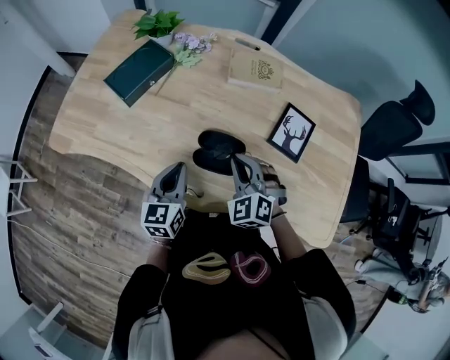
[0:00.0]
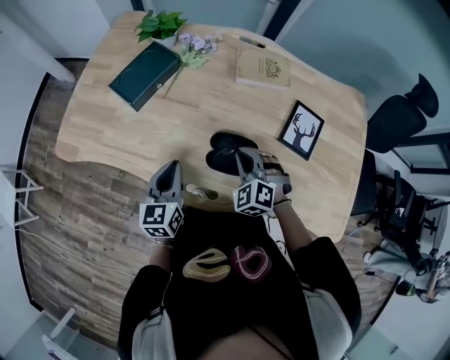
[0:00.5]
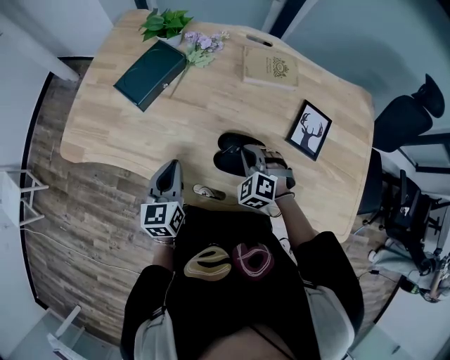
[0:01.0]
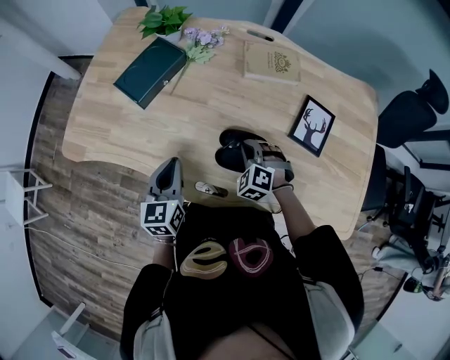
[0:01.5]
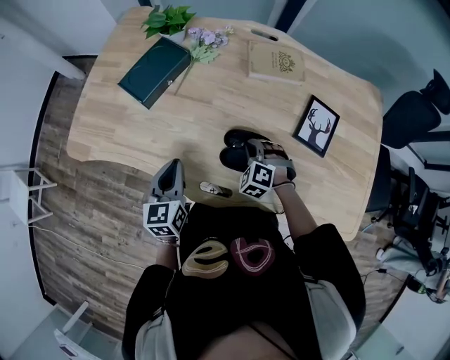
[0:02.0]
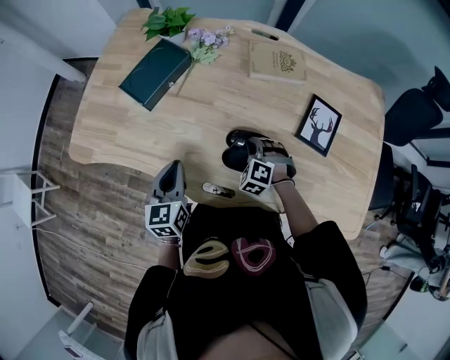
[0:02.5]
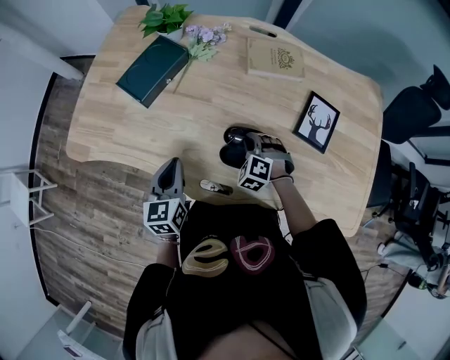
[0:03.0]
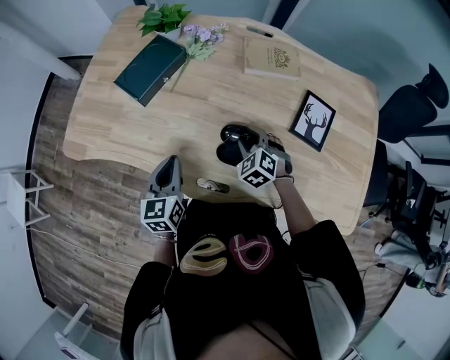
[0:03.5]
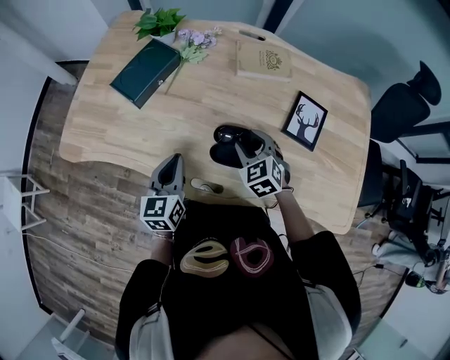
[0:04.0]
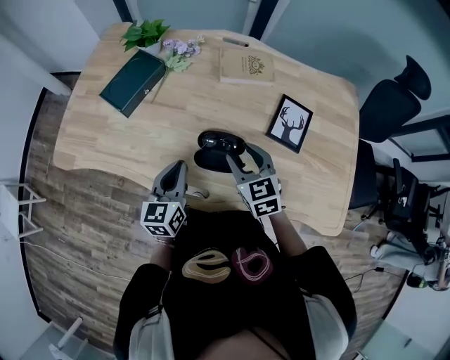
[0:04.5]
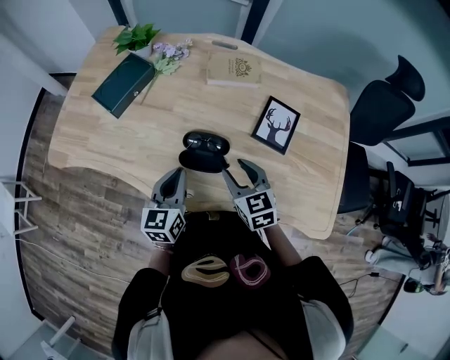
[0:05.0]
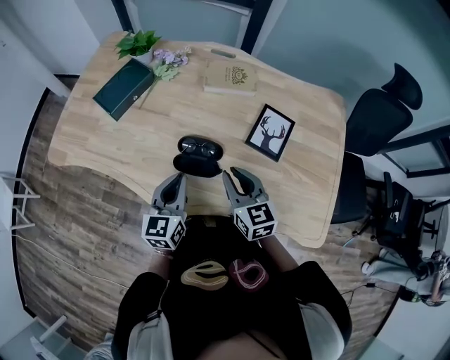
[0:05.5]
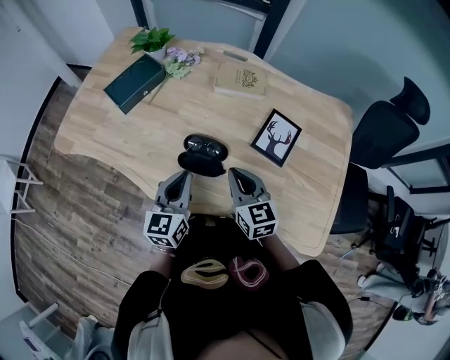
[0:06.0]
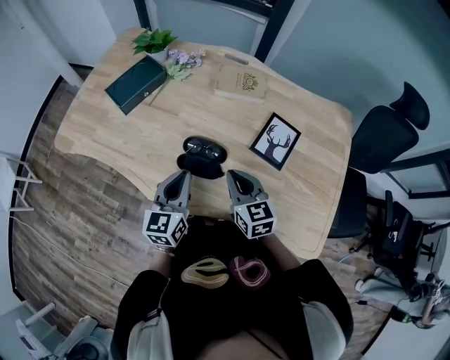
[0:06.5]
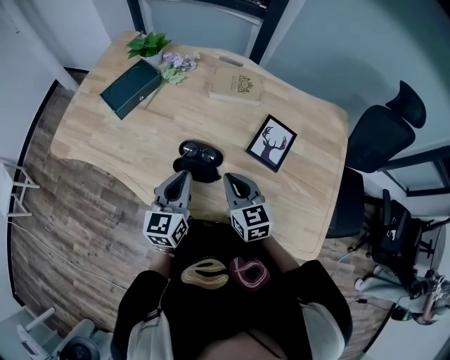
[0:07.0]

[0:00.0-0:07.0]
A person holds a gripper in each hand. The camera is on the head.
0.0 to 2.0 s: The right gripper is displaced downward and forward by approximately 15 cm, and turns by about 20 degrees. The left gripper travels to the left by some 10 cm.
2.0 to 3.5 s: The right gripper opens.
3.5 to 5.0 s: The left gripper moves to the right, roughly 15 cm; the right gripper heads backward, upward and to the right, covering roughly 15 cm, and changes its angle by about 40 degrees.
5.0 to 7.0 s: The right gripper closes, while the left gripper ends up approximately 5 cm from where it was.

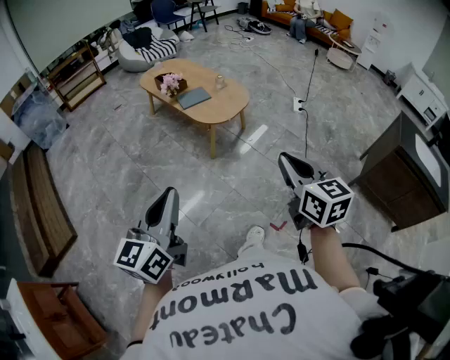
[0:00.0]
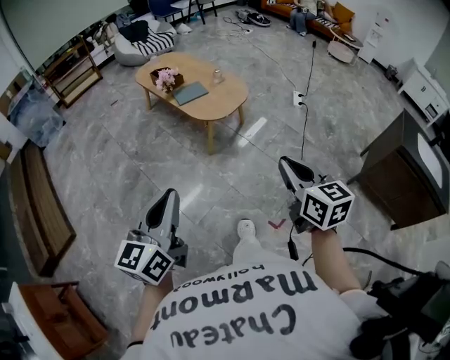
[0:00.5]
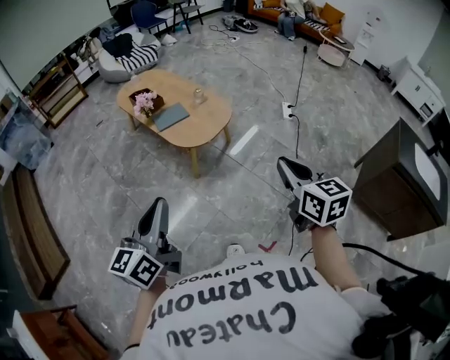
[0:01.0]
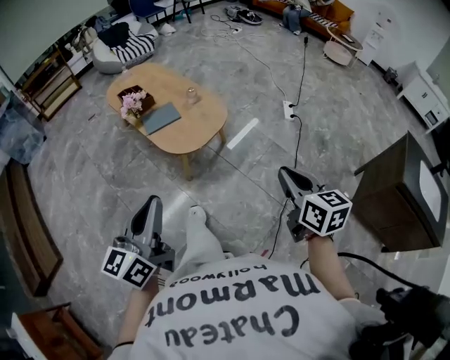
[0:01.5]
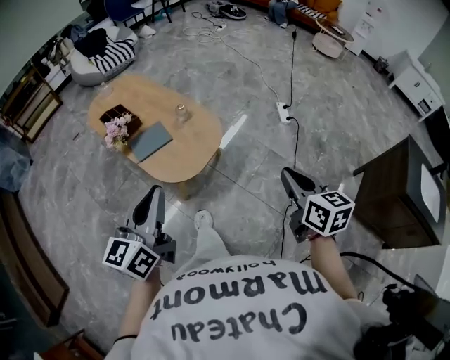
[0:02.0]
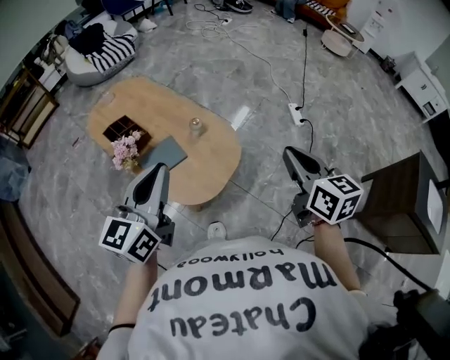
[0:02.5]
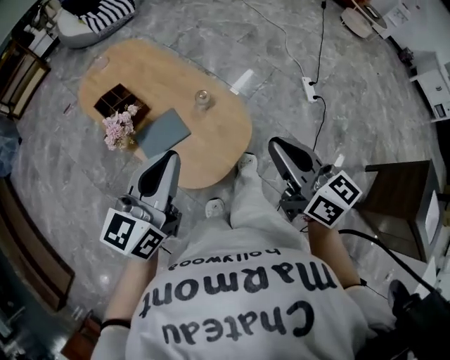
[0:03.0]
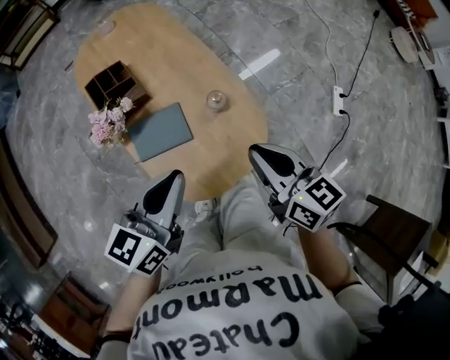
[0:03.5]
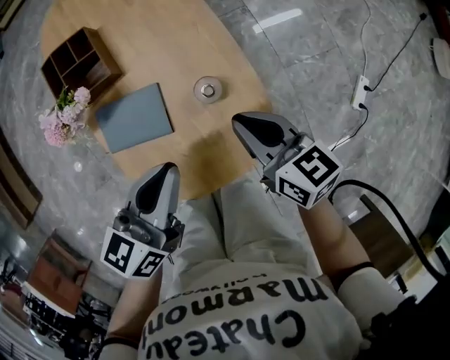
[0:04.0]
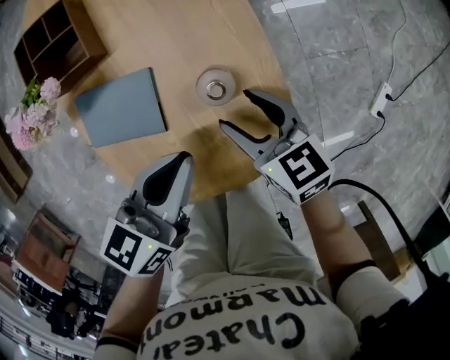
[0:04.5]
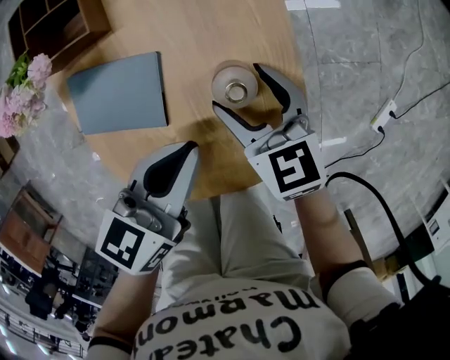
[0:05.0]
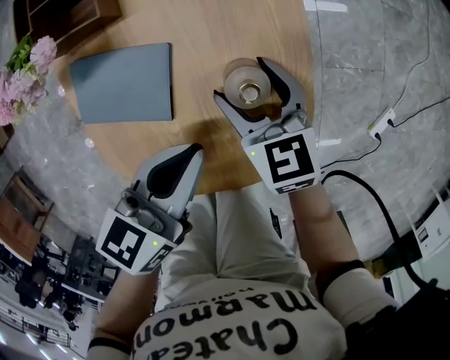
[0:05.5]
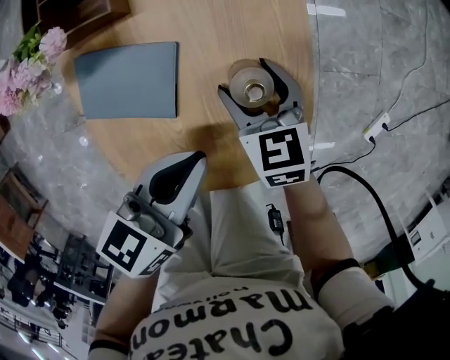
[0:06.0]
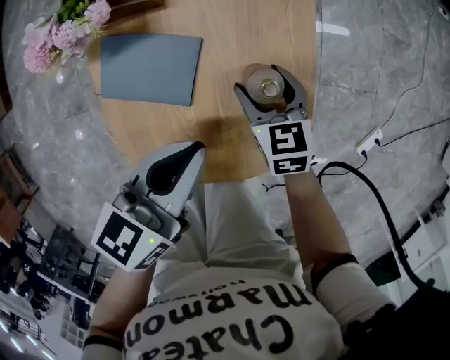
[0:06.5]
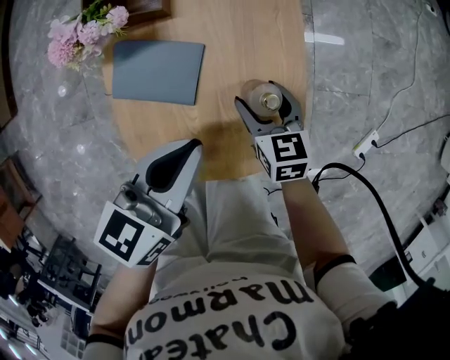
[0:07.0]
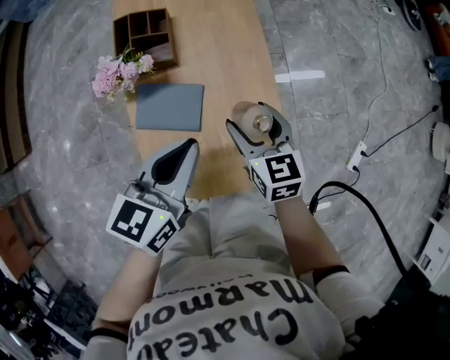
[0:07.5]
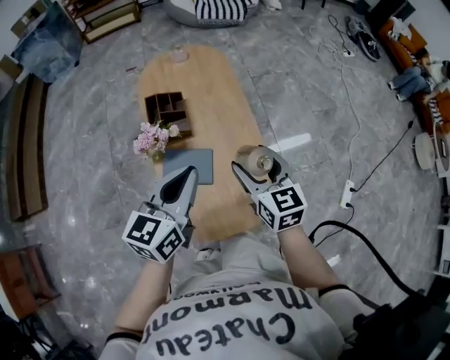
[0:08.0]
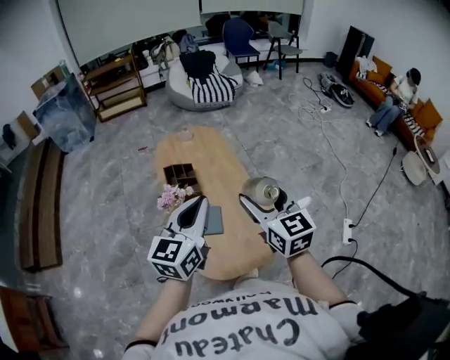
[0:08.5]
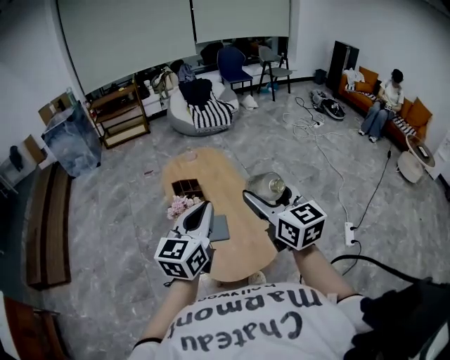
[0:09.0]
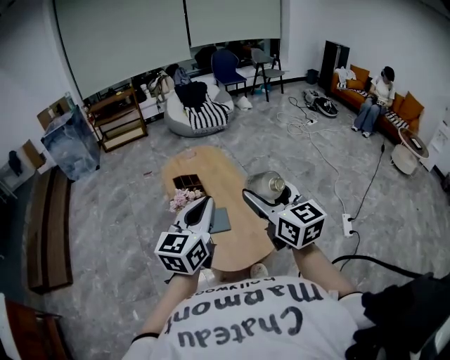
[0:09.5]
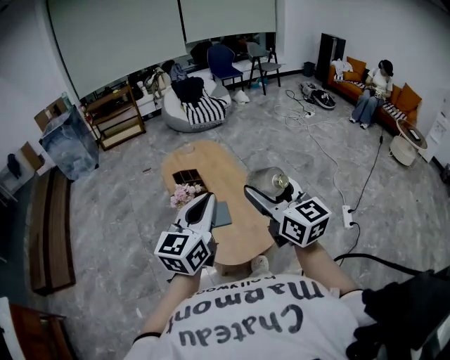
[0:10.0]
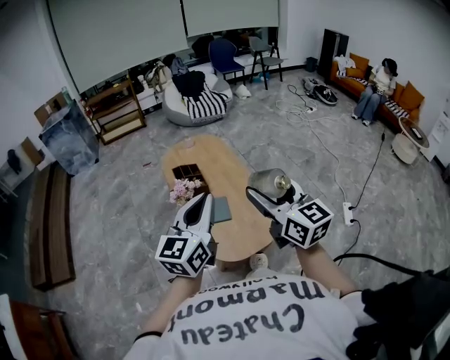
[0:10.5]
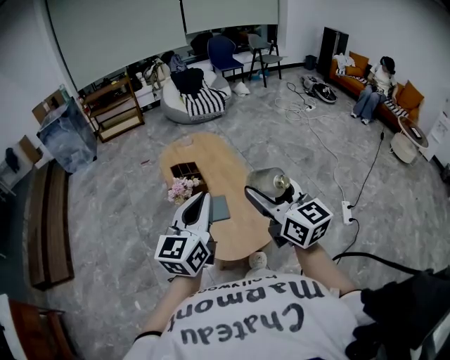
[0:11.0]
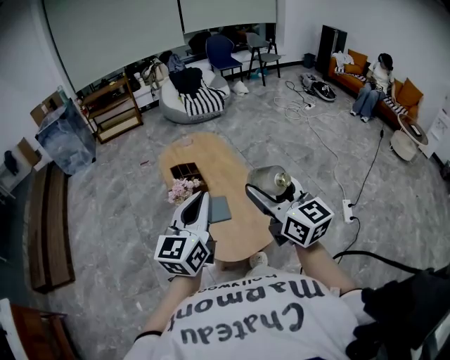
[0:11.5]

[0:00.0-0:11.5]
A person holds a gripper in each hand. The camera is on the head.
0.0 to 2.0 s: The two grippers travel together, forward, some 50 cm.
2.0 to 4.0 s: The pair of grippers is taken approximately 50 cm. The right gripper turns by approximately 50 degrees. The left gripper rotates roughly 30 degrees.
4.0 to 6.0 s: The two grippers go approximately 15 cm downward. The right gripper turns by approximately 30 degrees, and opens up.
6.0 to 7.5 s: The two grippers go approximately 20 cm upward.
7.5 to 9.5 s: The two grippers go some 40 cm upward and backward. The left gripper turns by approximately 30 degrees; the right gripper tips its fingers upward by about 30 degrees.
9.5 to 11.5 s: There are only small adjustments of the grippers.

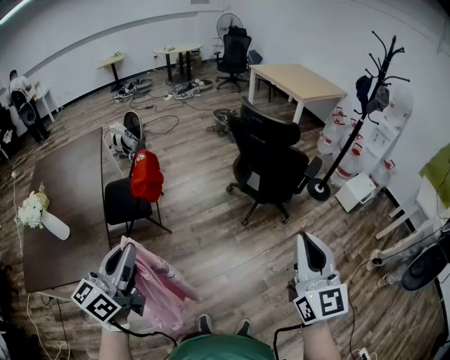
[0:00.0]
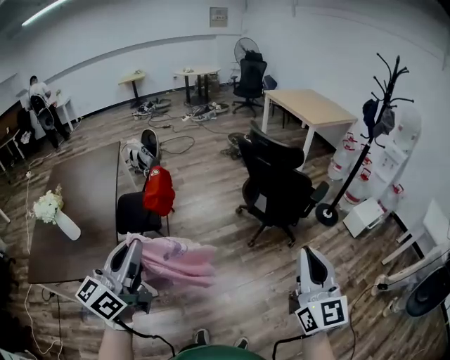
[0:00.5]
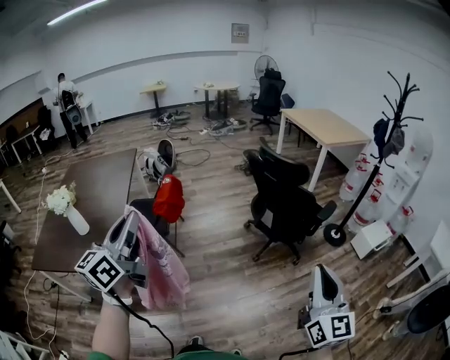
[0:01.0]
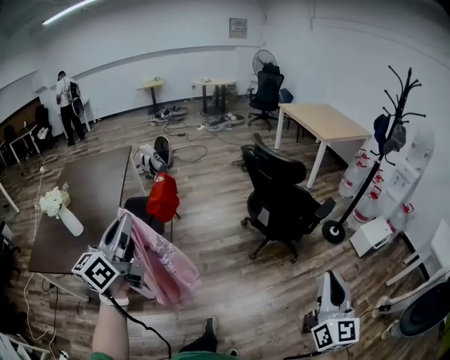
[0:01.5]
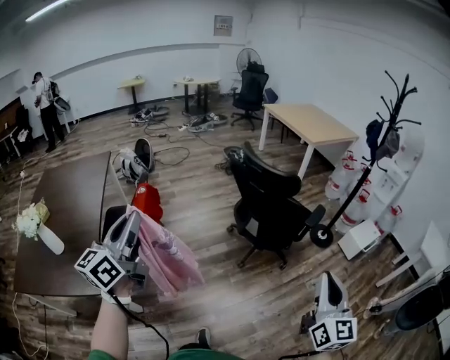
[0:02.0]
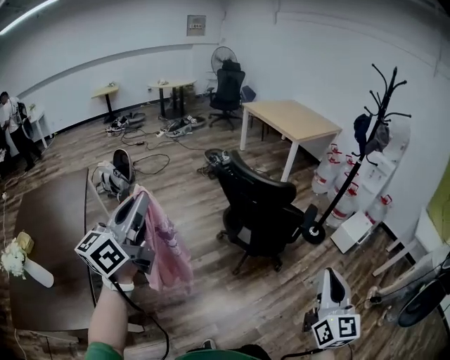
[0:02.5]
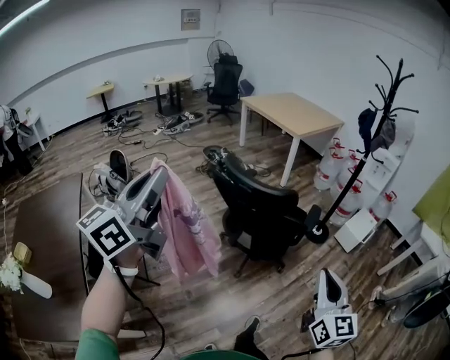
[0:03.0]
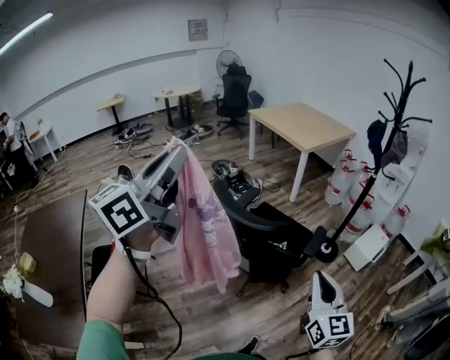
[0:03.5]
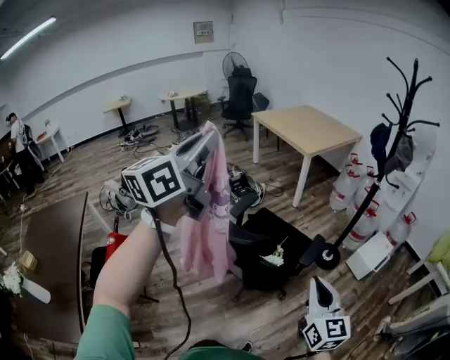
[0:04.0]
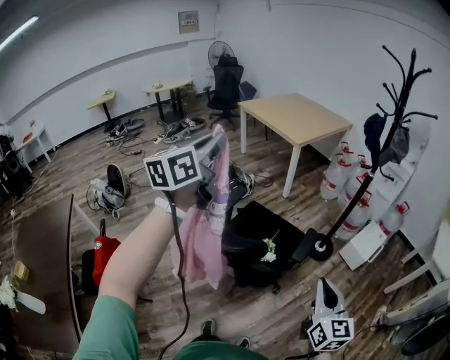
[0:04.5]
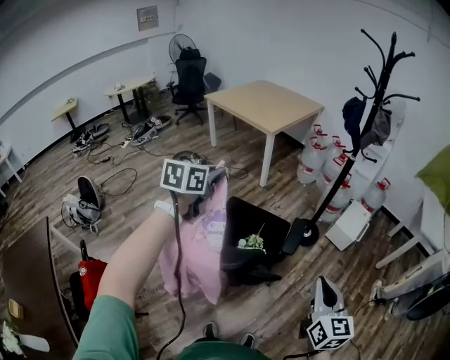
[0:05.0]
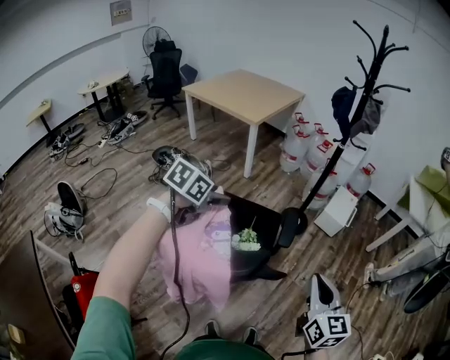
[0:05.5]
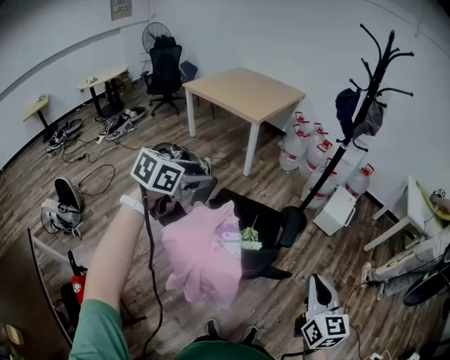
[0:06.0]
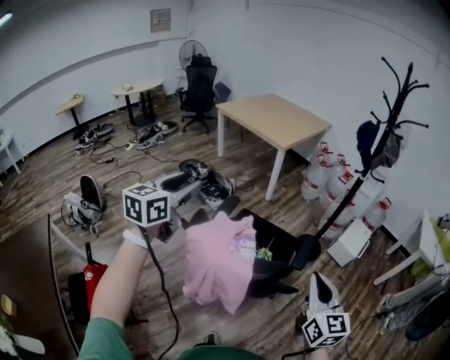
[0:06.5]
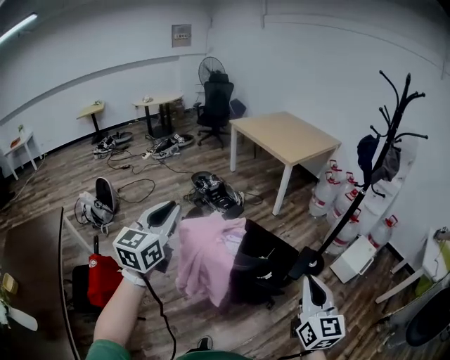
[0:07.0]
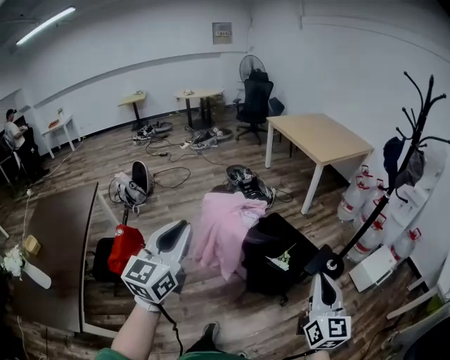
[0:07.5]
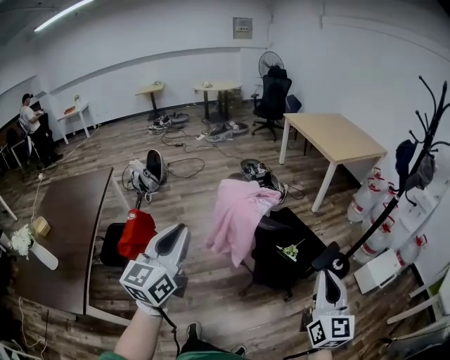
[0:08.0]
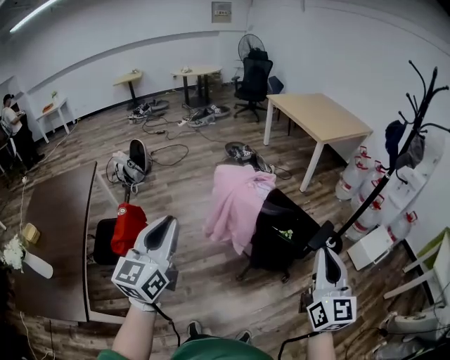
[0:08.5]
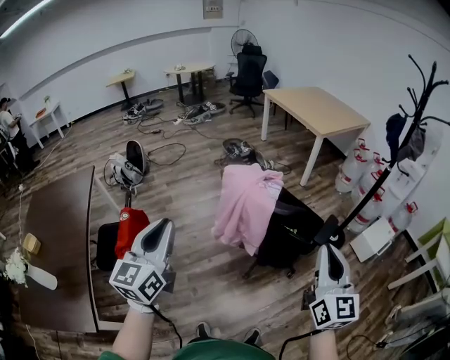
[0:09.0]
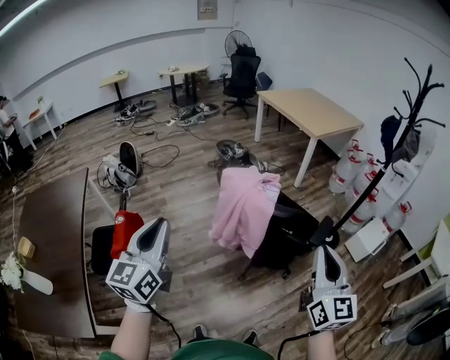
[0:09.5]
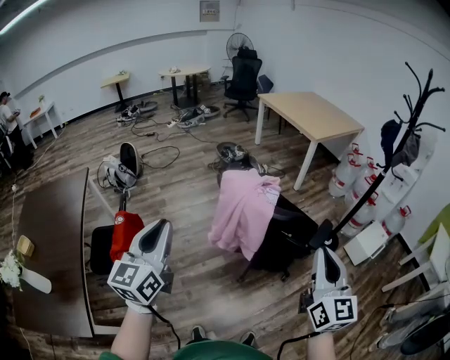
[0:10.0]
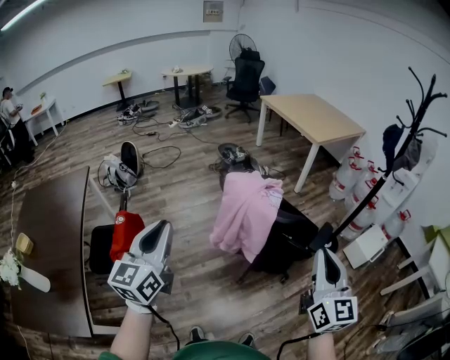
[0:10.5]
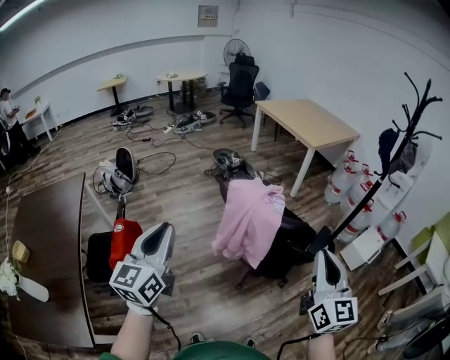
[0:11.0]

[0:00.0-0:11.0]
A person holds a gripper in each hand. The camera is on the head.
0.0 to 2.0 s: The left gripper moves forward and upward, roughly 20 cm. The right gripper travels to the right and forward by some 15 cm.
2.0 to 3.5 s: The right gripper heads forward, covering some 30 cm. Meanwhile the left gripper shifts some 40 cm forward and upward, and changes its angle by roughly 30 degrees.
3.5 to 5.5 s: The right gripper ends up roughly 15 cm from where it was, and swivels about 30 degrees. Meanwhile the left gripper changes place by about 50 cm, angles its fingers downward, by roughly 60 degrees, and opens.
5.5 to 7.5 s: The left gripper shifts by approximately 40 cm, tips its fingers upward by roughly 50 degrees, and closes. The right gripper goes about 5 cm upward, and changes its angle by roughly 30 degrees.
7.5 to 9.0 s: Both grippers travel together to the left, about 10 cm.
9.0 to 11.0 s: There are only small adjustments of the grippers.
